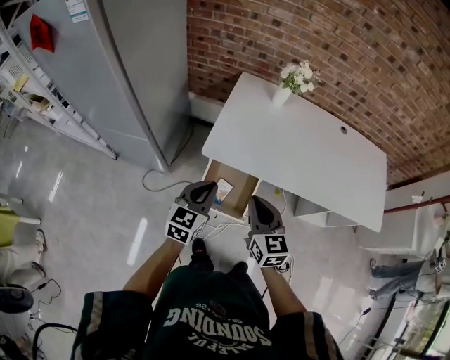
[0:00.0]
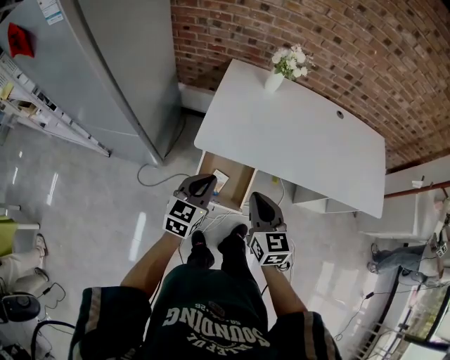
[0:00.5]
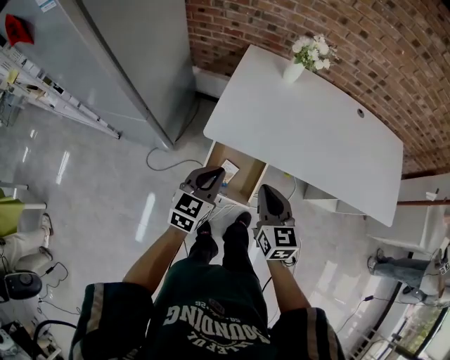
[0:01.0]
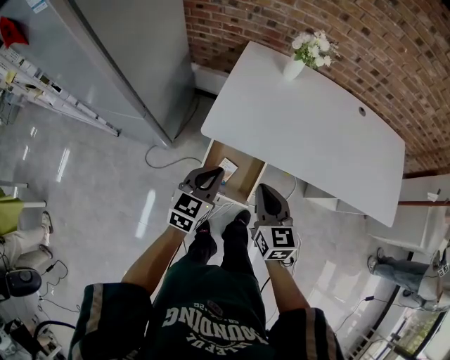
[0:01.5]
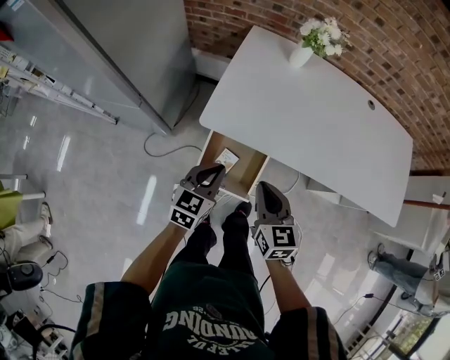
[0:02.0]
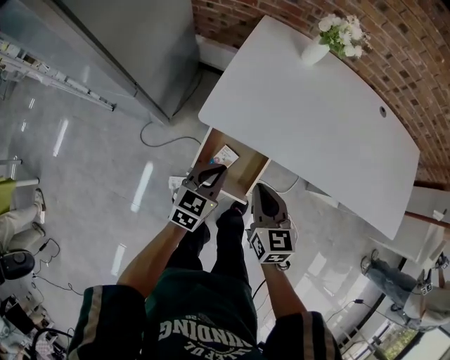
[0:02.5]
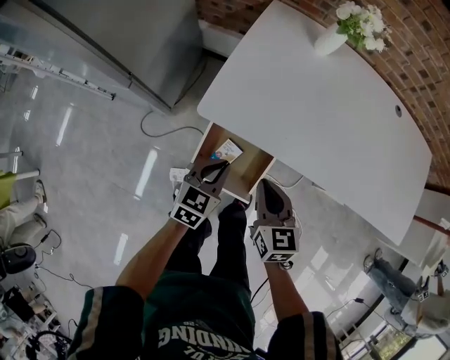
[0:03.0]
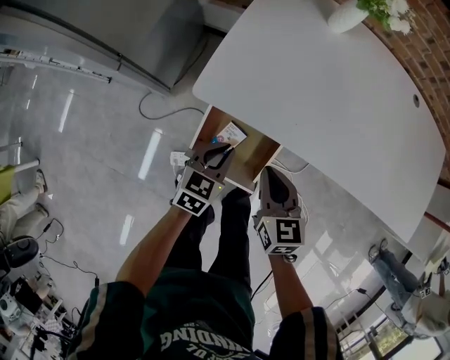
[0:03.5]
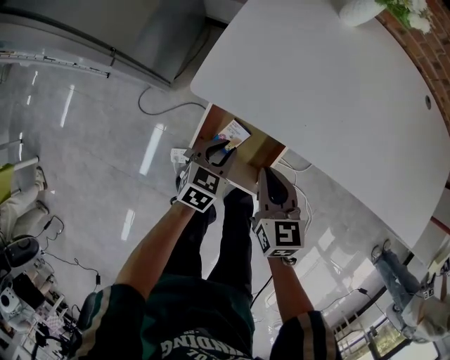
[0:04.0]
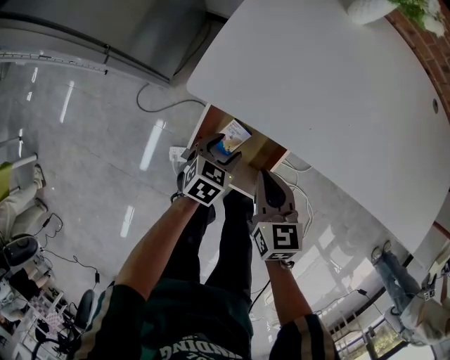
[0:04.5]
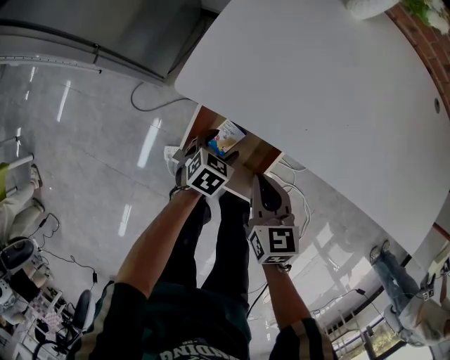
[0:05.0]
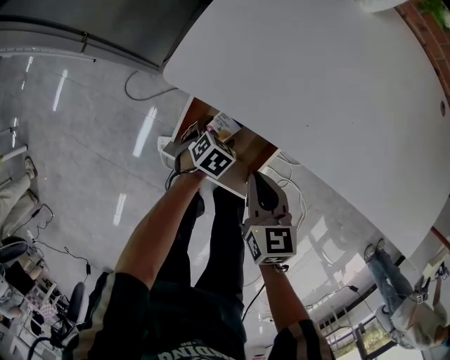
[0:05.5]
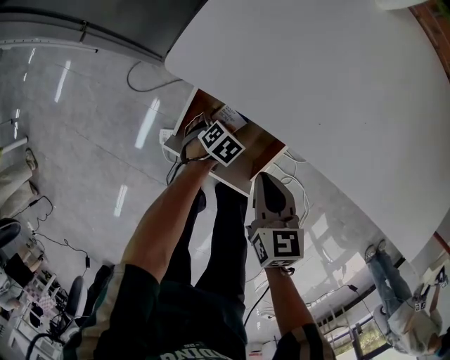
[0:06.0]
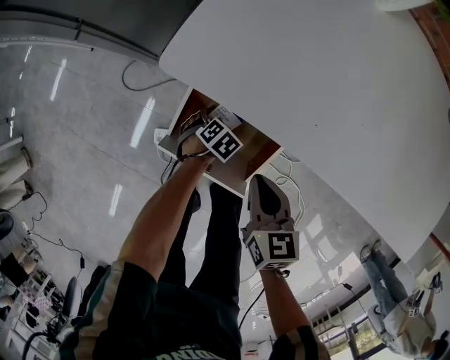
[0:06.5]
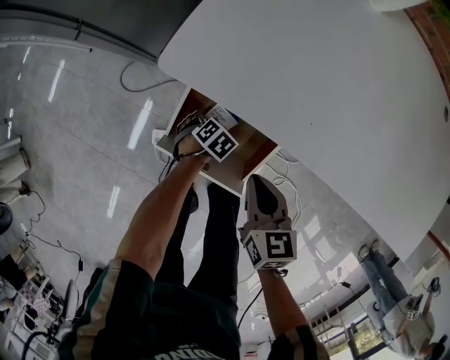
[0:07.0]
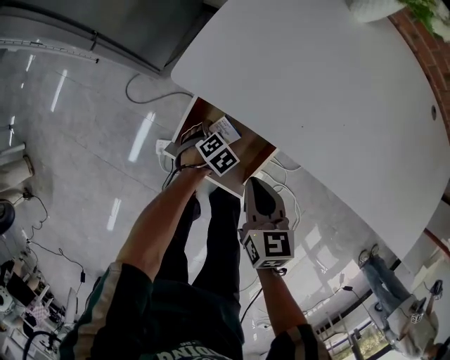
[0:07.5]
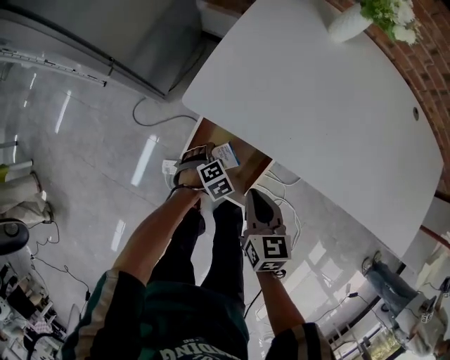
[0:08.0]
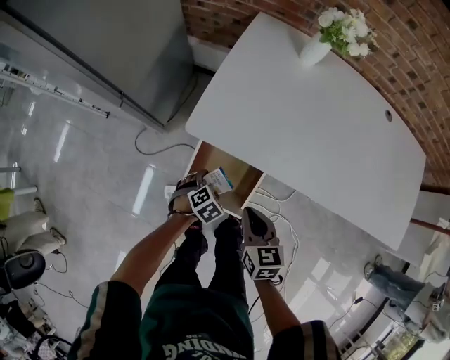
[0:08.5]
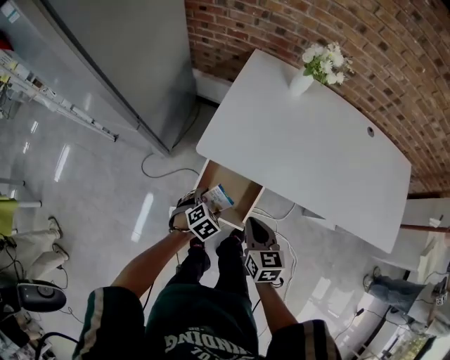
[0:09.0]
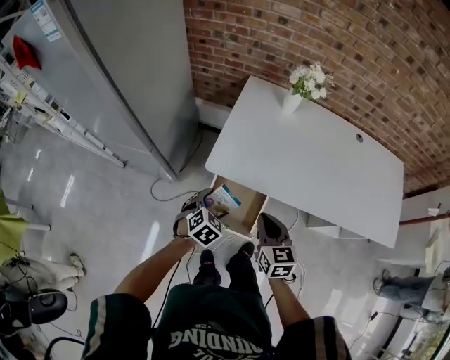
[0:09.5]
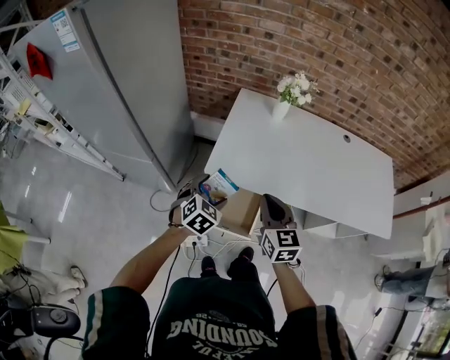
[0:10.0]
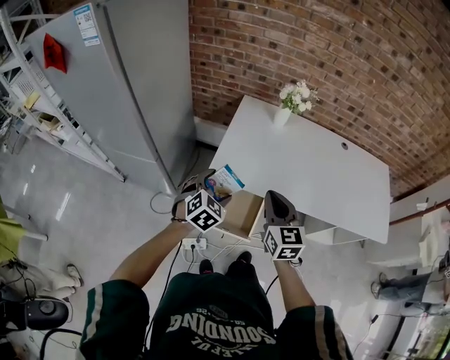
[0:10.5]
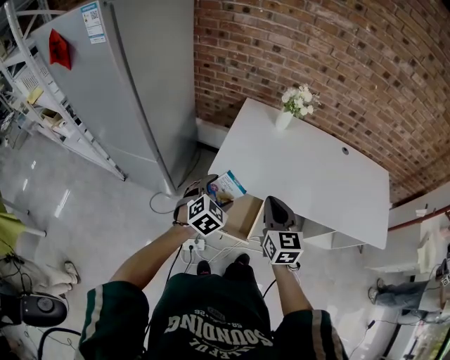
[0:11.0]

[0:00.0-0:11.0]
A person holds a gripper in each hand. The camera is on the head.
0:00.0 to 0:02.0: Both grippers travel together downward, approximately 10 cm.
0:02.0 to 0:03.5: The two grippers go about 15 cm downward.
0:03.5 to 0:05.5: The right gripper heads downward, covering approximately 10 cm; the left gripper shifts approximately 20 cm downward, points its fingers about 30 degrees further downward, and opens its fingers.
0:07.5 to 0:09.0: The right gripper travels upward by about 15 cm. Meanwhile the left gripper shifts some 25 cm upward.
0:09.0 to 0:11.0: The two grippers go about 20 cm upward. The left gripper changes its angle by roughly 30 degrees; the right gripper rotates approximately 20 degrees.

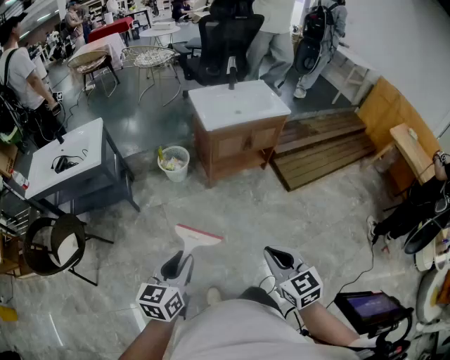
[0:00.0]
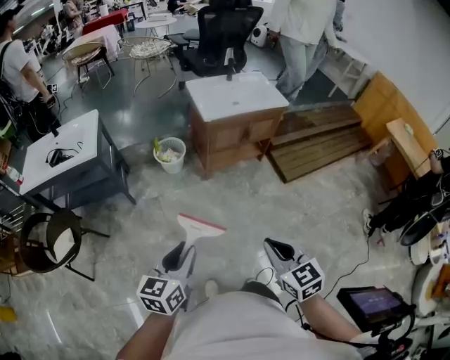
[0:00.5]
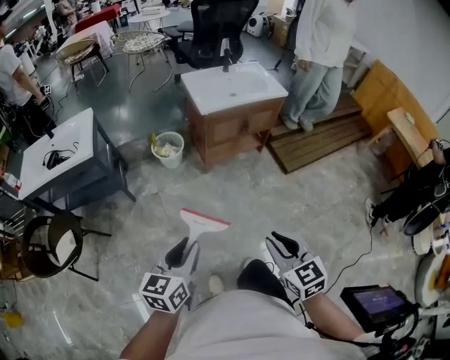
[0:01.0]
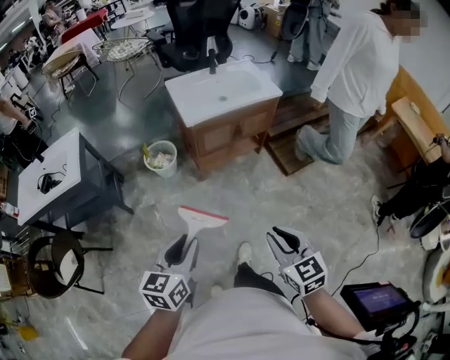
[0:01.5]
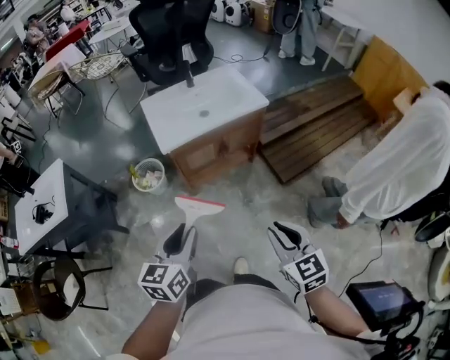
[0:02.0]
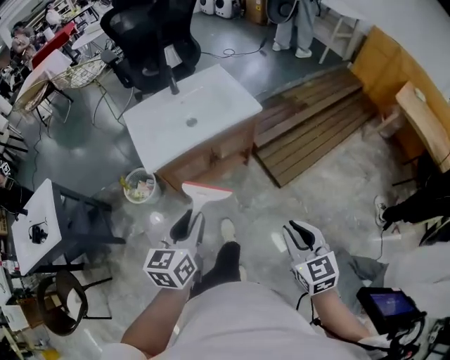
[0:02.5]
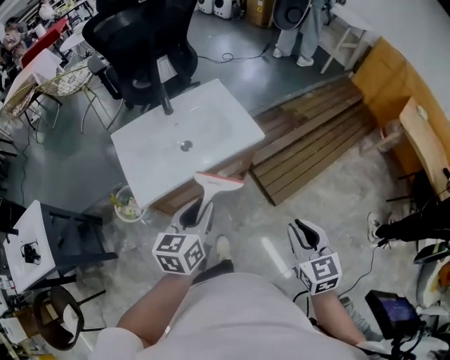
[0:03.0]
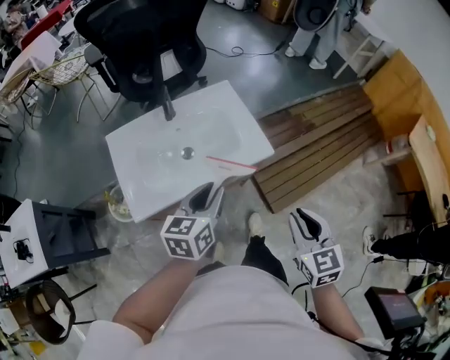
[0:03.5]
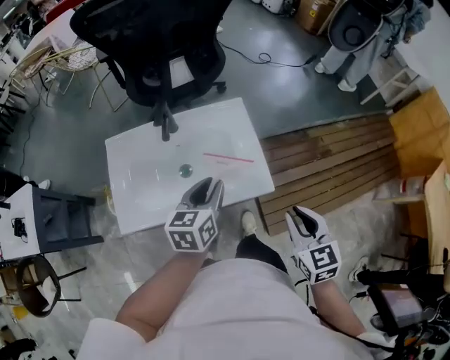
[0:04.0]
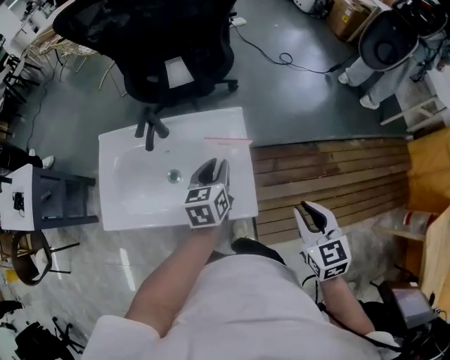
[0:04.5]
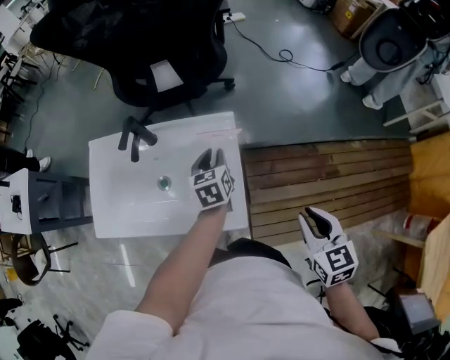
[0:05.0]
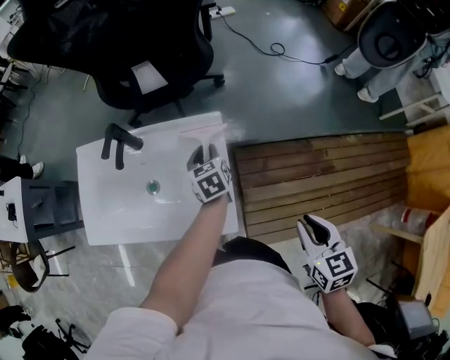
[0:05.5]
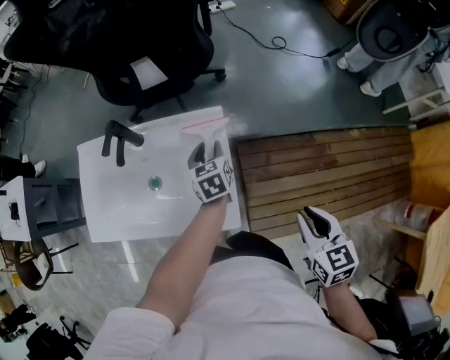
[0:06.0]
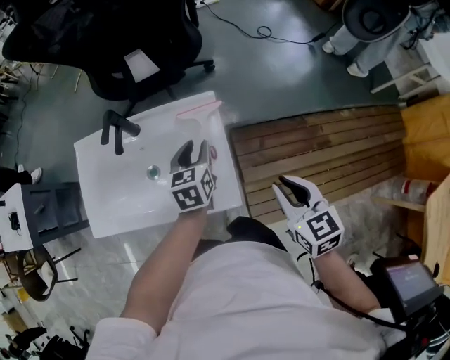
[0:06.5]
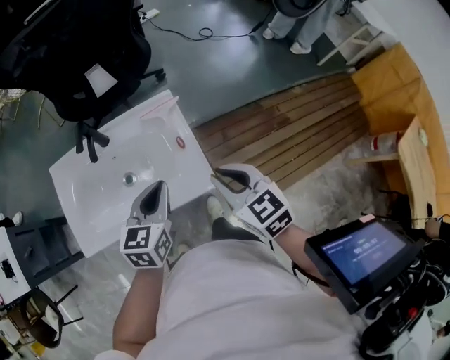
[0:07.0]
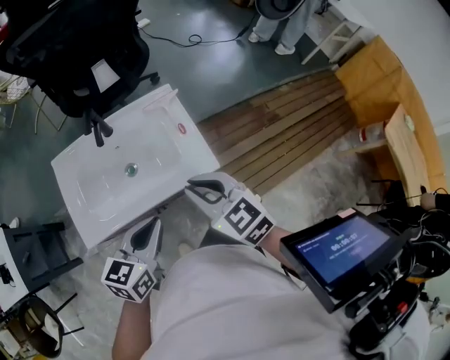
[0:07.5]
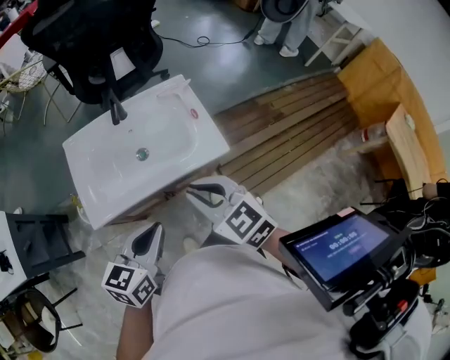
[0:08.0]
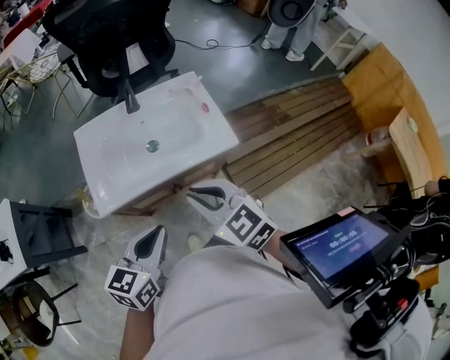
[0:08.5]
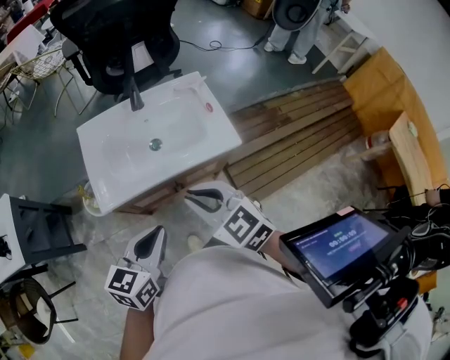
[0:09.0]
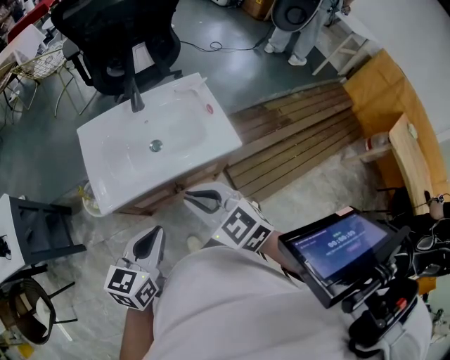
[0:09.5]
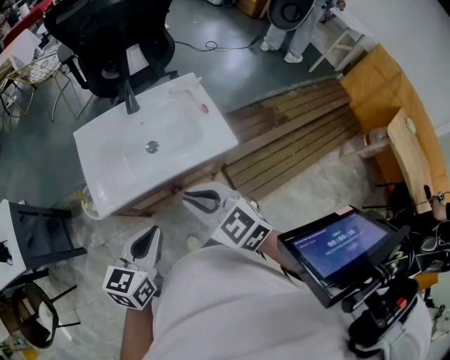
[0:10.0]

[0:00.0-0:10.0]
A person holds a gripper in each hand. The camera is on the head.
0:00.0 to 0:02.0: The grippers both shift forward and to the right by approximately 35 cm.
0:02.0 to 0:04.0: The two grippers travel together, forward, about 60 cm.
0:04.0 to 0:06.0: The left gripper moves approximately 30 cm, and changes its angle by roughly 30 degrees. The right gripper shifts by some 25 cm.
0:06.0 to 0:08.0: The left gripper is displaced backward, to the left and upward by about 50 cm, turns by some 50 degrees, and closes up. Meanwhile the right gripper heads to the left and backward, covering about 40 cm, and swivels roughly 20 degrees.
0:08.0 to 0:10.0: The left gripper shifts by some 5 cm, while the right gripper moves to the left, about 5 cm.

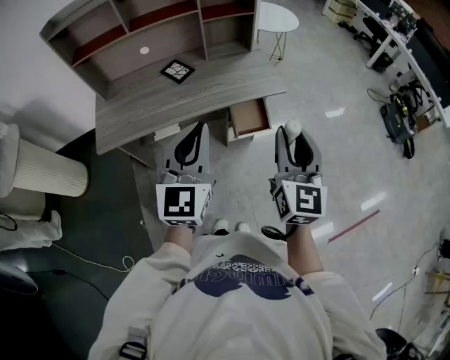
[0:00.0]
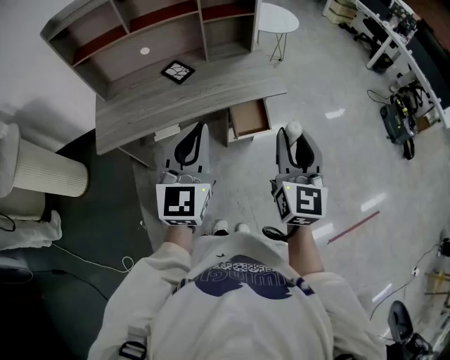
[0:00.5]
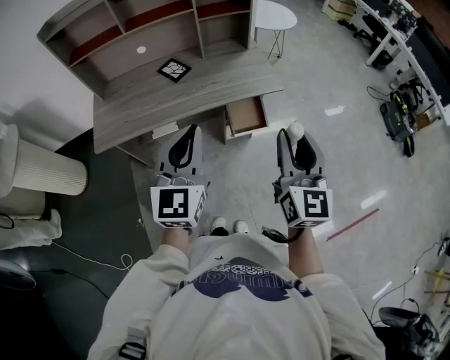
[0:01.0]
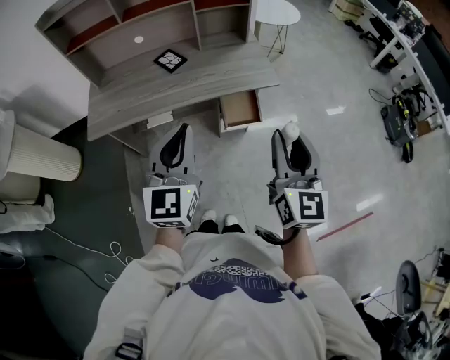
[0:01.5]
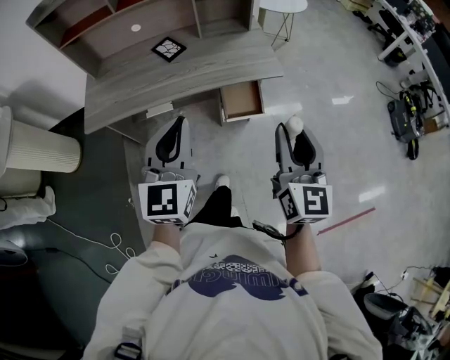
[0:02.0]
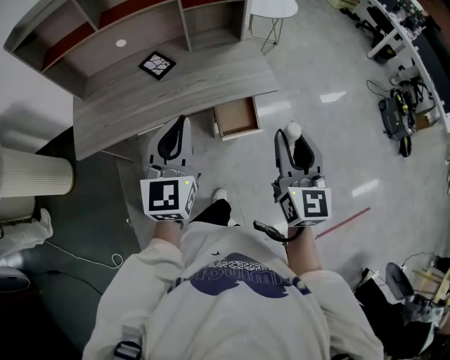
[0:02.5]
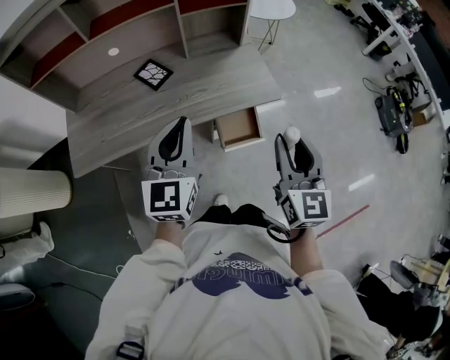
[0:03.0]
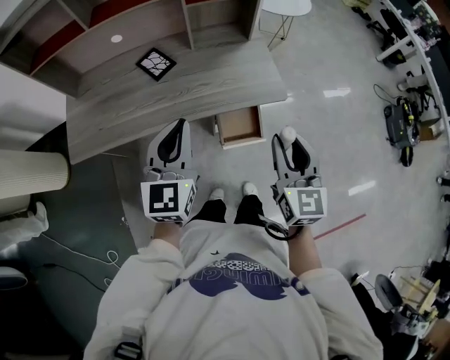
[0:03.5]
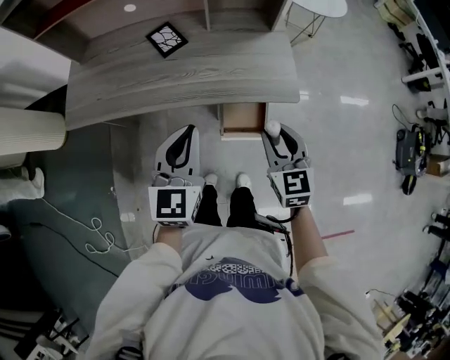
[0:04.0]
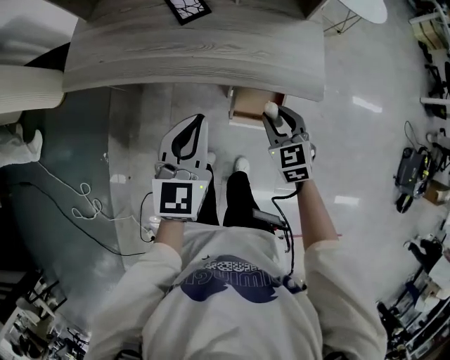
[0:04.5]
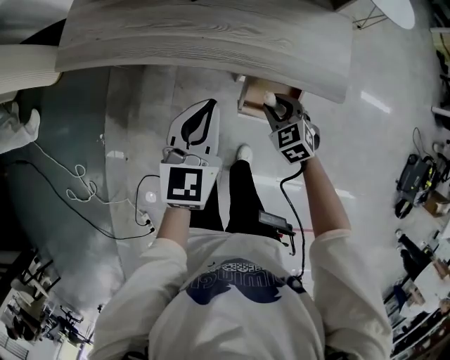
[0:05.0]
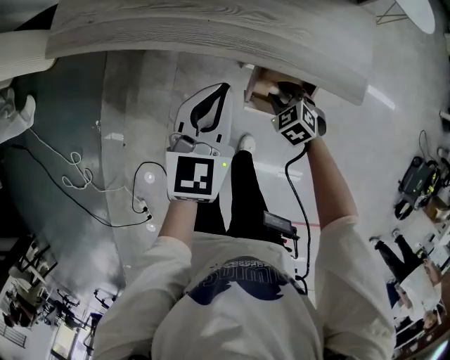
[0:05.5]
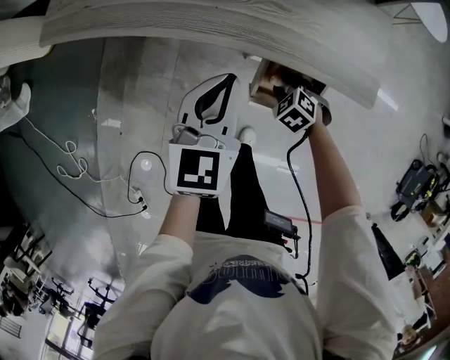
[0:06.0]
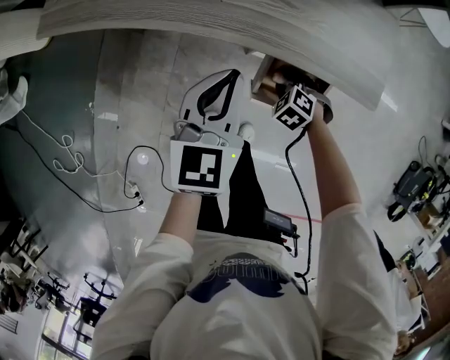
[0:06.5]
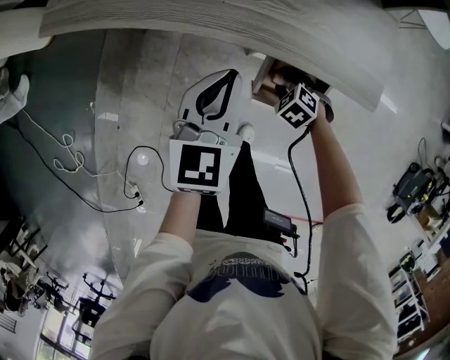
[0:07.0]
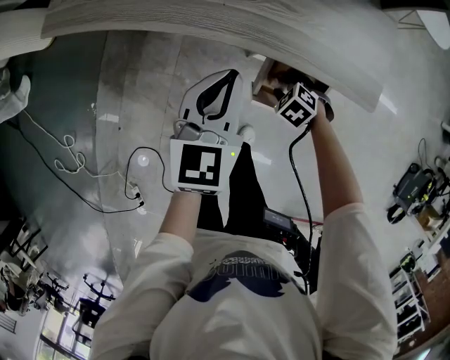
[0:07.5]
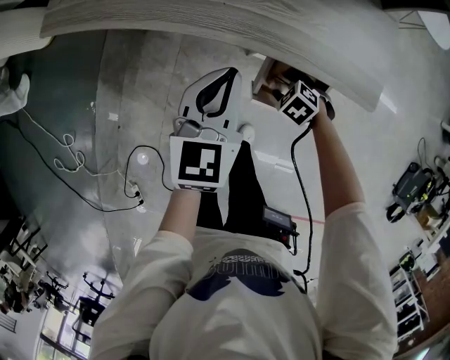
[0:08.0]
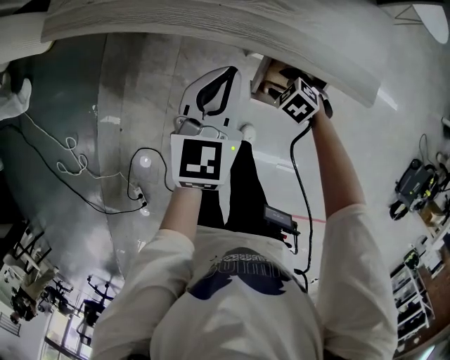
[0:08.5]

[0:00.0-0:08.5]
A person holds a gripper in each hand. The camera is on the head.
0:00.0 to 0:02.0: The right gripper moves to the right, approximately 5 cm. Meanwhile the left gripper ends up about 5 cm from where it was.
0:02.0 to 0:04.0: The grippers both shift forward and downward by roughly 25 cm. The right gripper turns by approximately 40 degrees.
0:04.0 to 0:06.5: The left gripper heads downward, covering roughly 20 cm. Meanwhile the right gripper moves downward, approximately 40 cm, and angles its fingers downward, by some 50 degrees.
0:06.5 to 0:08.5: The right gripper opens.
